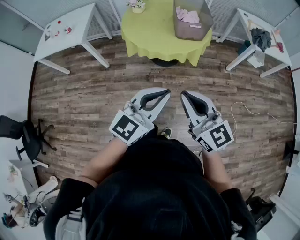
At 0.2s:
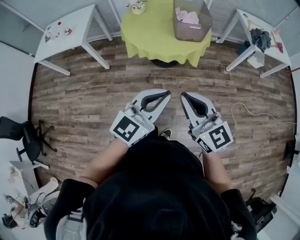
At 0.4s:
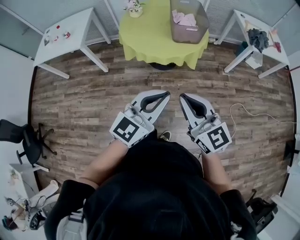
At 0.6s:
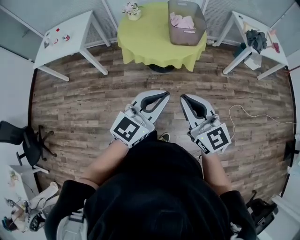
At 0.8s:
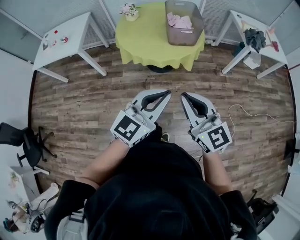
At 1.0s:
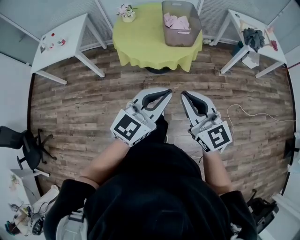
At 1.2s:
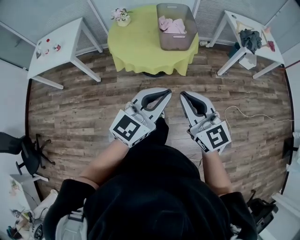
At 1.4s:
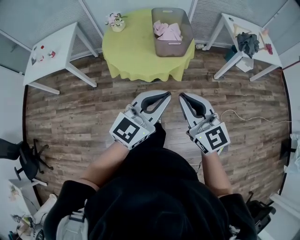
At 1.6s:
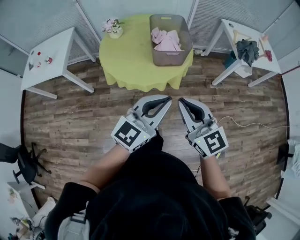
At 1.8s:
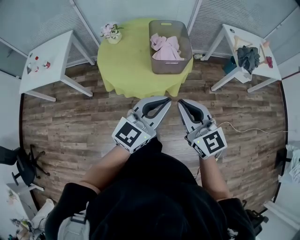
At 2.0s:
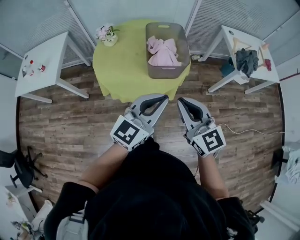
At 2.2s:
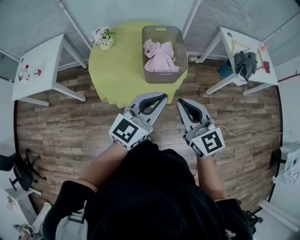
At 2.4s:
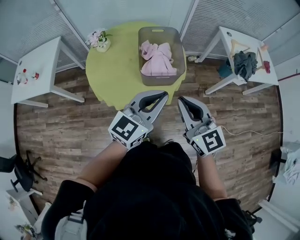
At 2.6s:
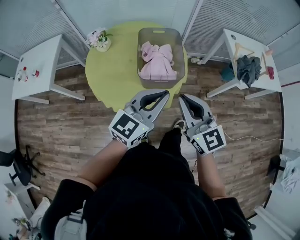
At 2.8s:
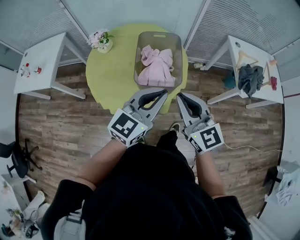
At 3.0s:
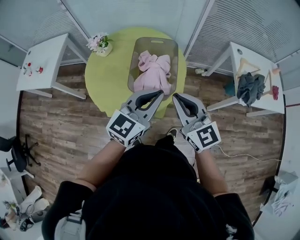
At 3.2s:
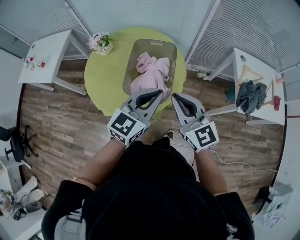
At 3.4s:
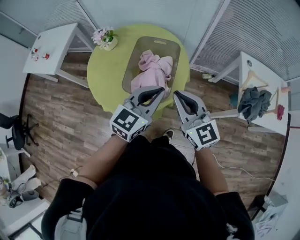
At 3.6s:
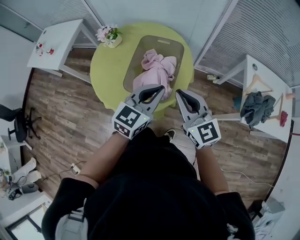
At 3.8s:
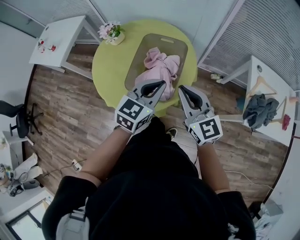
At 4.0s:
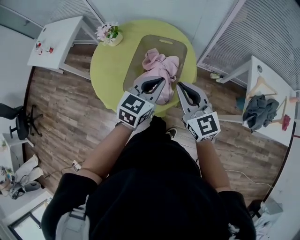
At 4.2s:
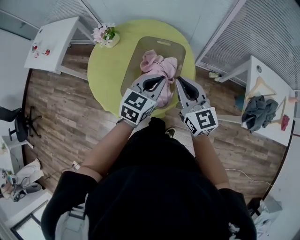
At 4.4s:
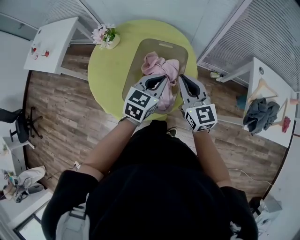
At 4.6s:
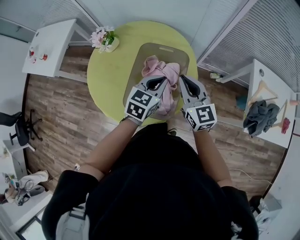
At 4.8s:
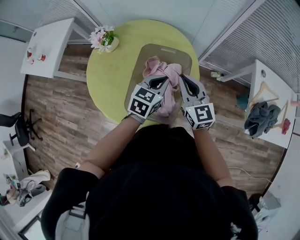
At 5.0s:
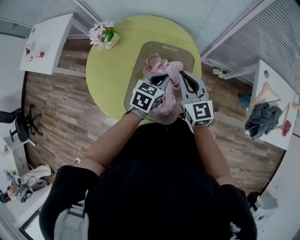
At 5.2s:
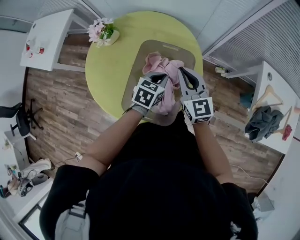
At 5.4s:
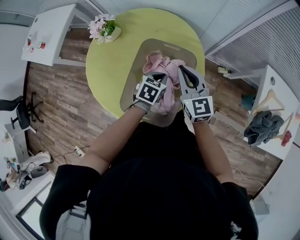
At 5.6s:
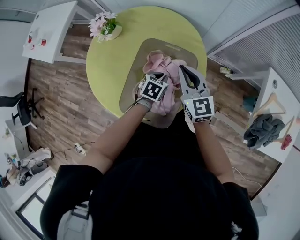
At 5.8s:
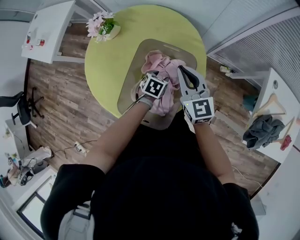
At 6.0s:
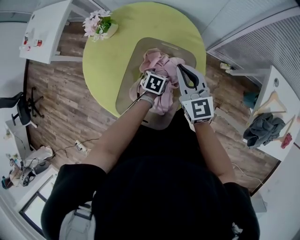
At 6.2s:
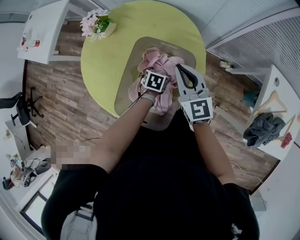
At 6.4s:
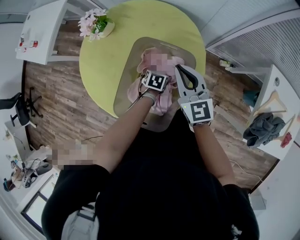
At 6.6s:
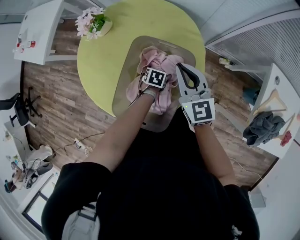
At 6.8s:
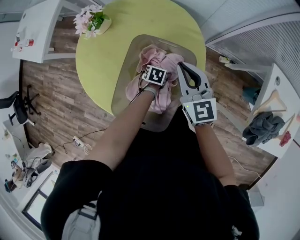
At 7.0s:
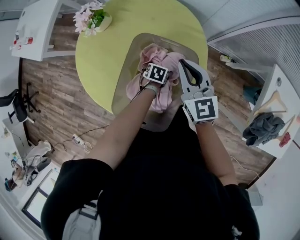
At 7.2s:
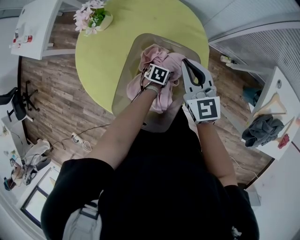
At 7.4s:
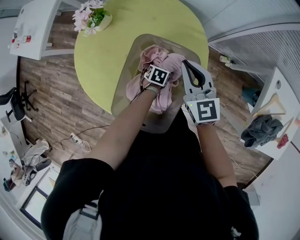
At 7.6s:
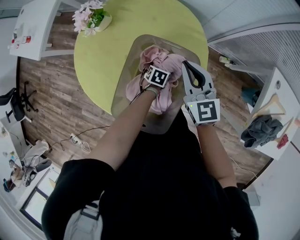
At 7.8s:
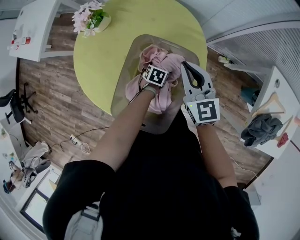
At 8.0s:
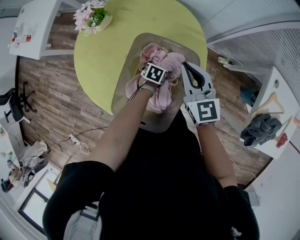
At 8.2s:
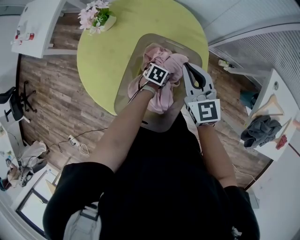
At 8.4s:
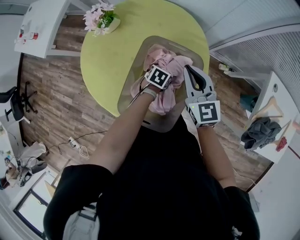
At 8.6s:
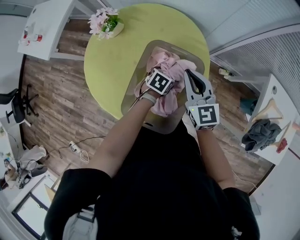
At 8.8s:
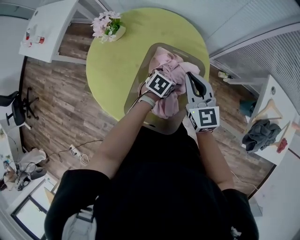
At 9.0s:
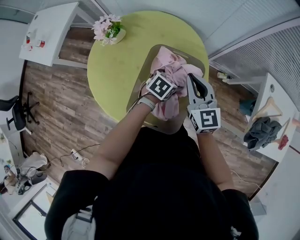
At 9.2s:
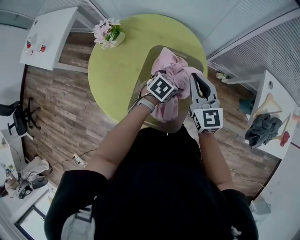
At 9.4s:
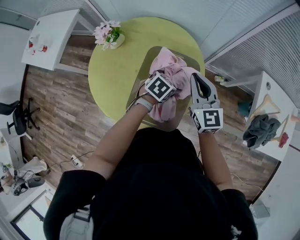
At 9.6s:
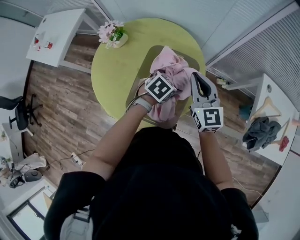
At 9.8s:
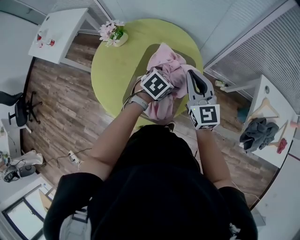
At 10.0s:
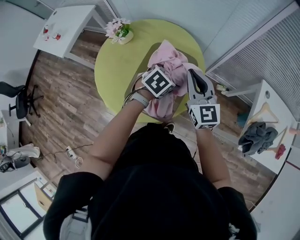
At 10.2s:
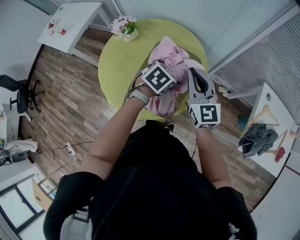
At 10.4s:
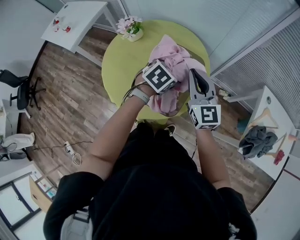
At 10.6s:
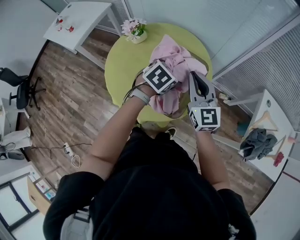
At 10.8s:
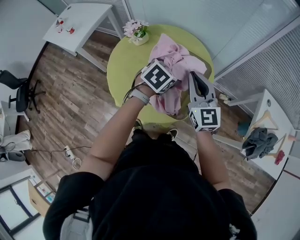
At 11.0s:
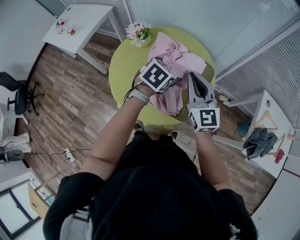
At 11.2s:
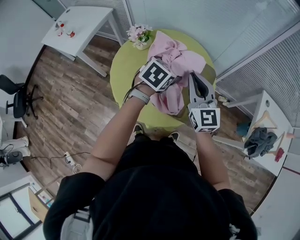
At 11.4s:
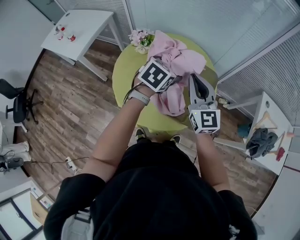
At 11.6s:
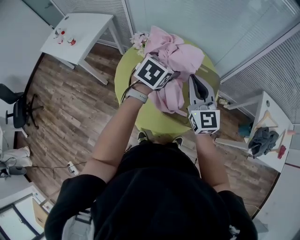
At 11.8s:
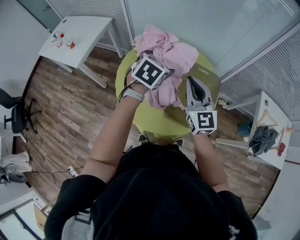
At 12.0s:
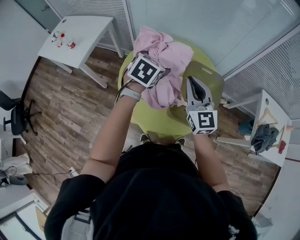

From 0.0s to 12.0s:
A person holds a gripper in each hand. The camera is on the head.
From 0.0s to 1.6s: Both grippers travel together forward and to the right, approximately 20 cm.
From 1.6s to 3.0s: Both grippers travel together forward, roughly 30 cm.
From 3.0s to 4.4s: Both grippers move forward and downward, some 25 cm. The left gripper rotates approximately 30 degrees.
From 4.4s to 6.0s: The right gripper heads forward and downward, covering about 15 cm. Meanwhile the left gripper travels downward by some 25 cm, tilts its fingers roughly 40 degrees downward, and opens its fingers.
From 6.0s to 7.6s: The left gripper travels downward by about 10 cm.
From 7.6s to 9.0s: The right gripper heads backward, covering roughly 5 cm. Meanwhile the left gripper is displaced upward by approximately 20 cm, and swivels some 20 degrees.
From 9.0s to 10.4s: The grippers both shift upward and backward by some 15 cm.
From 10.4s to 12.0s: The right gripper travels to the left by about 20 cm. Meanwhile the left gripper travels to the left and upward by about 30 cm.

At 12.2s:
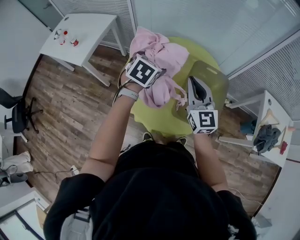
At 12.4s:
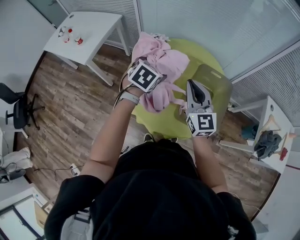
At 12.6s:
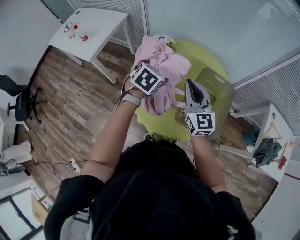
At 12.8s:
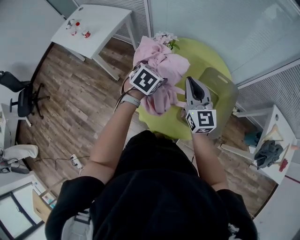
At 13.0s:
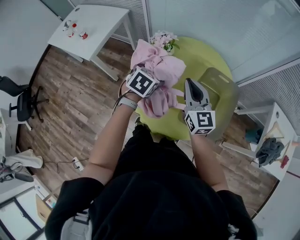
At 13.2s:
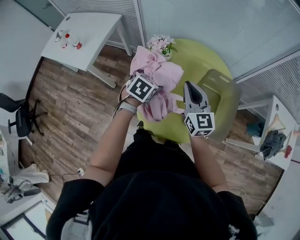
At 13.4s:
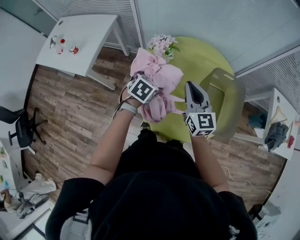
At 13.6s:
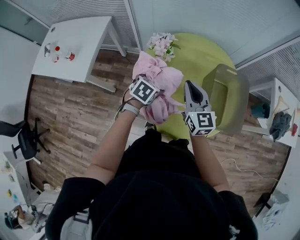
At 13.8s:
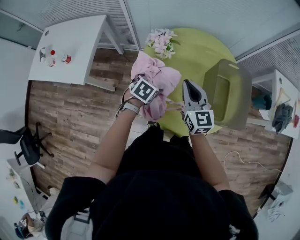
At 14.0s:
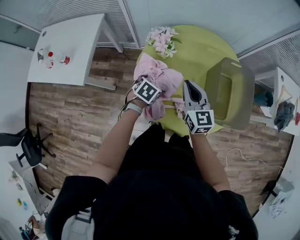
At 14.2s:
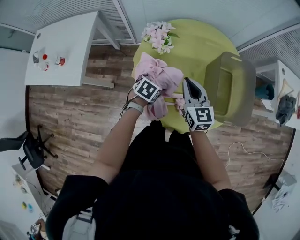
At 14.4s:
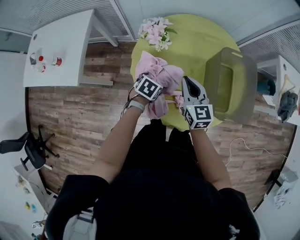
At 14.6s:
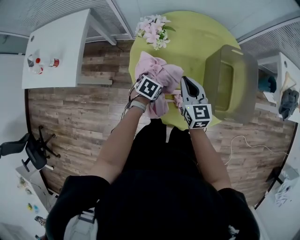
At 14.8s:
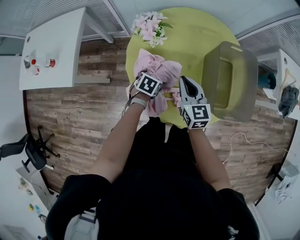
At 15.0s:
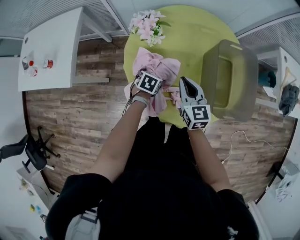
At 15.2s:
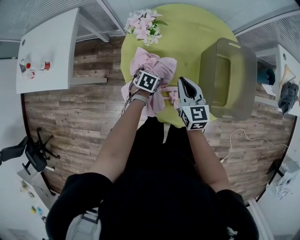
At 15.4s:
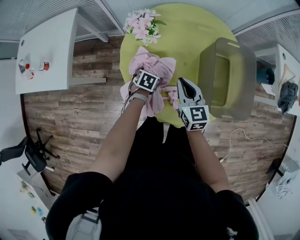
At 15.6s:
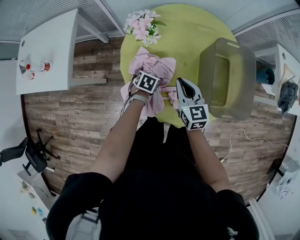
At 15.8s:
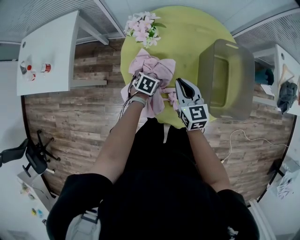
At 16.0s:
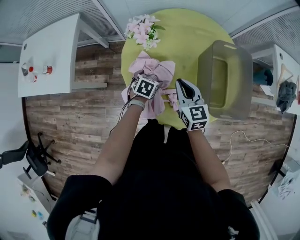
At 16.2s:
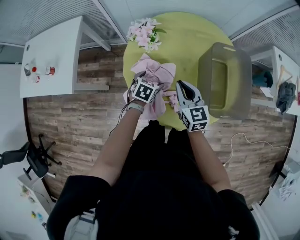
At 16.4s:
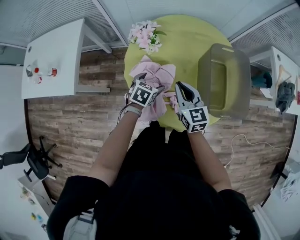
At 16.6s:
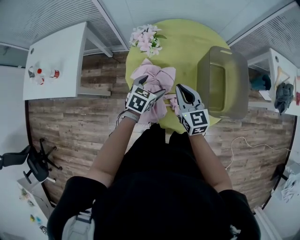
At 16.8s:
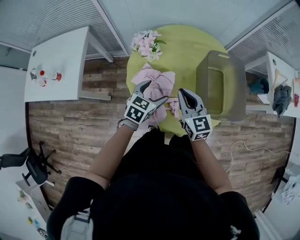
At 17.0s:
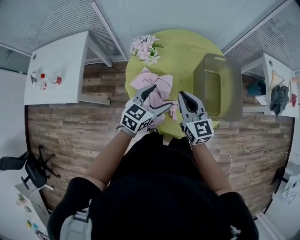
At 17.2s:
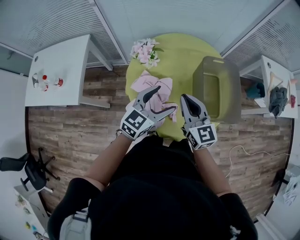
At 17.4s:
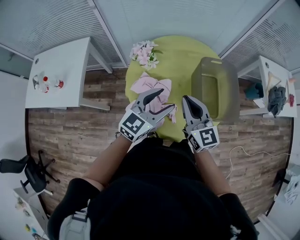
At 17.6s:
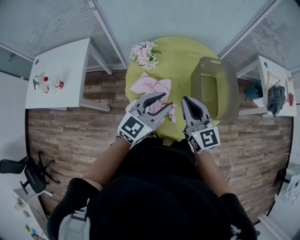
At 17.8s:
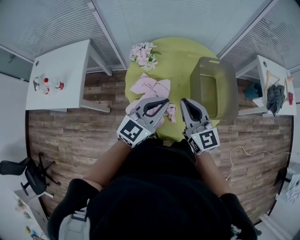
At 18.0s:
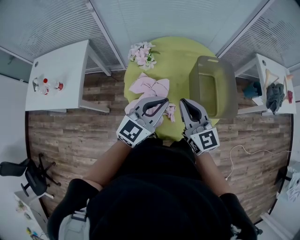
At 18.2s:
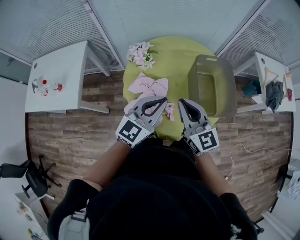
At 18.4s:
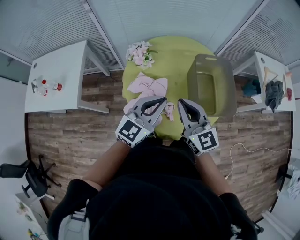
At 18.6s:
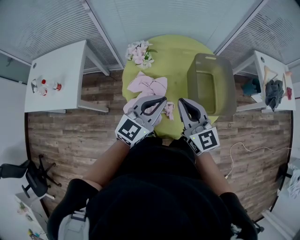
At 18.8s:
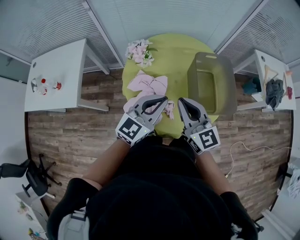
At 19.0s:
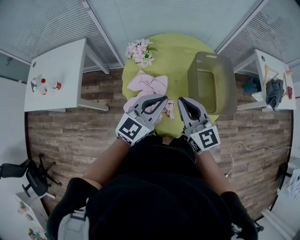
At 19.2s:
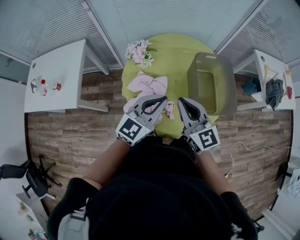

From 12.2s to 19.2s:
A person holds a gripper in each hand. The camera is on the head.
From 12.2s to 13.6s: The left gripper travels downward and to the left by about 20 cm, and swivels about 20 degrees, while the right gripper travels to the left, downward and forward by some 15 cm.
From 13.6s to 15.0s: The two grippers go some 15 cm downward.
From 15.0s to 16.4s: The left gripper heads upward, covering some 10 cm.
From 16.4s to 17.8s: The right gripper heads upward and backward, covering roughly 15 cm. Meanwhile the left gripper heads upward, covering some 25 cm, points its fingers some 50 degrees further upward, and closes up.
From 17.8s to 19.2s: The grippers stay close to where they were, moving slightly.

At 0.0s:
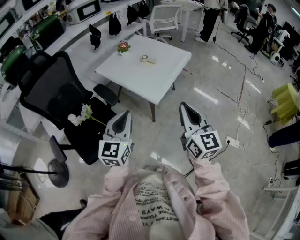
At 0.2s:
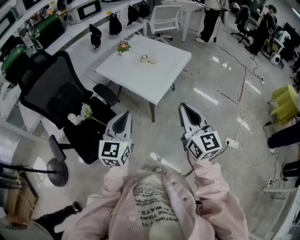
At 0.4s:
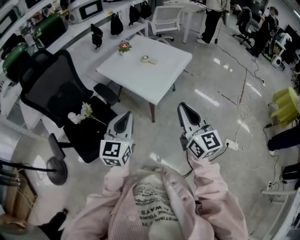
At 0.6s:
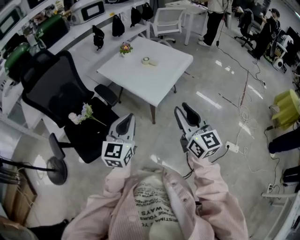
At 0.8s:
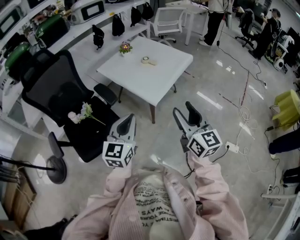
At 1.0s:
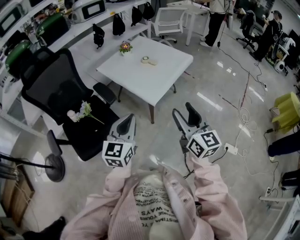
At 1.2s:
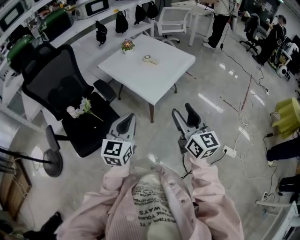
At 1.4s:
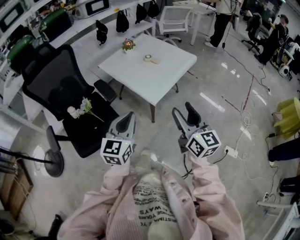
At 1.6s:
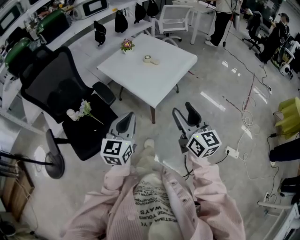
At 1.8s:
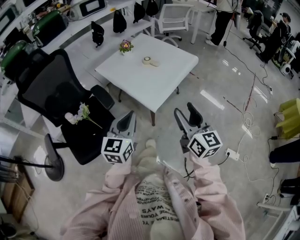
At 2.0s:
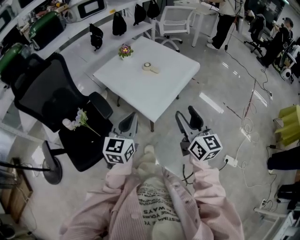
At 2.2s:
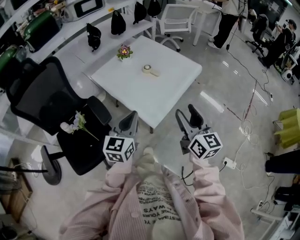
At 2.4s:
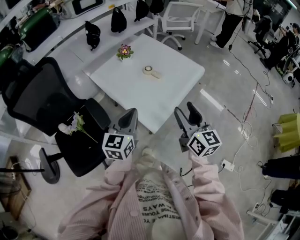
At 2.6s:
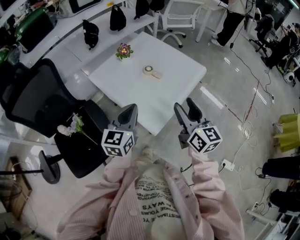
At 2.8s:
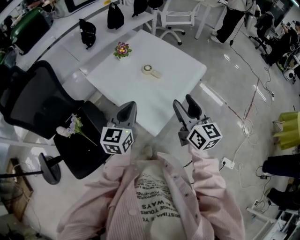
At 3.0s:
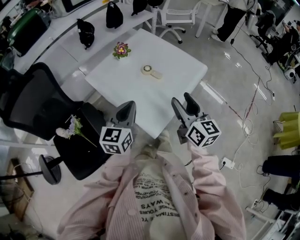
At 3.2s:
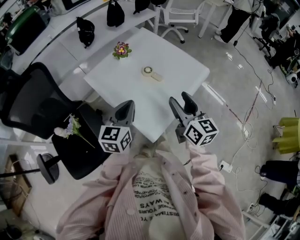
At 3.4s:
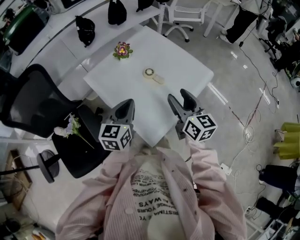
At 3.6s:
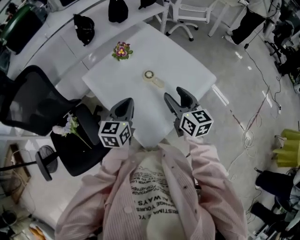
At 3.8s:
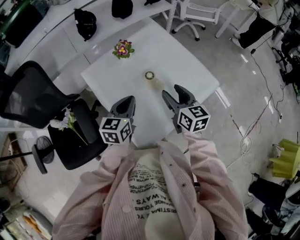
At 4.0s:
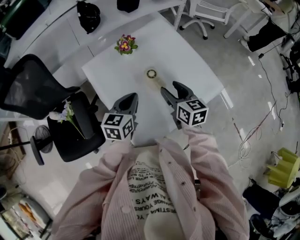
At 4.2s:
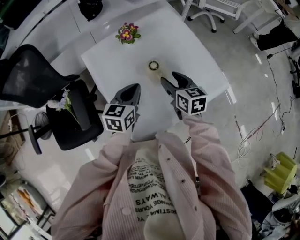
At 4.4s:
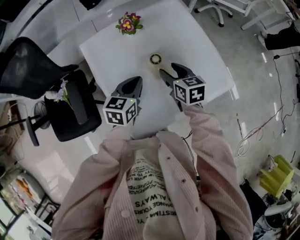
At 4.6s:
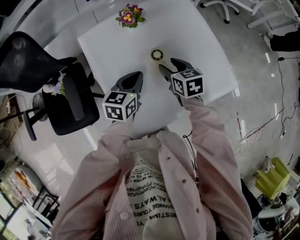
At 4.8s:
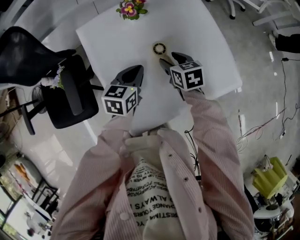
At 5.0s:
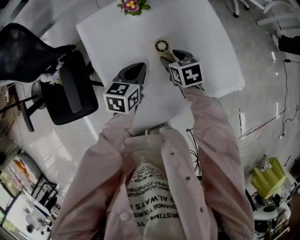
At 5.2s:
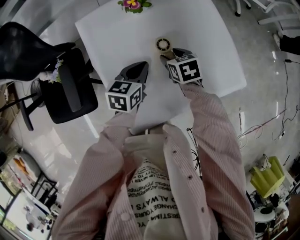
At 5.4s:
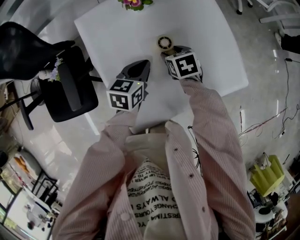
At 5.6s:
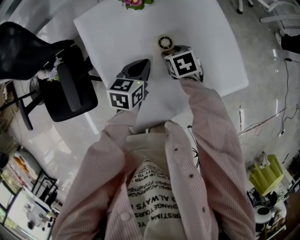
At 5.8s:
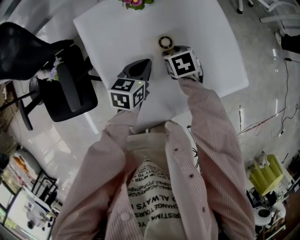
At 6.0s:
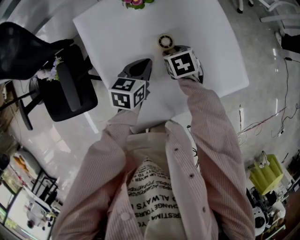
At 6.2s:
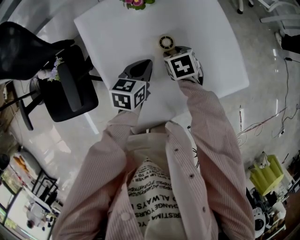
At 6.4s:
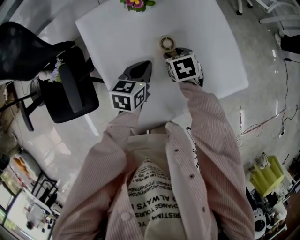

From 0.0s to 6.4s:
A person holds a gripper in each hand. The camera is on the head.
From 0.0s to 1.6s: The right gripper ends up some 10 cm from where it was, and opens up; the left gripper goes roughly 5 cm to the right.
From 1.6s to 3.2s: Both grippers travel together forward, roughly 35 cm.
From 3.2s to 4.8s: The left gripper moves approximately 25 cm, and turns by some 30 degrees. Meanwhile the right gripper heads downward, covering roughly 25 cm, and angles its fingers downward, by some 40 degrees.
